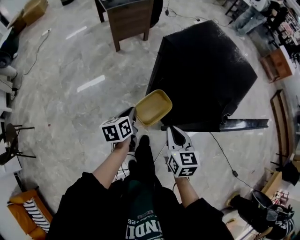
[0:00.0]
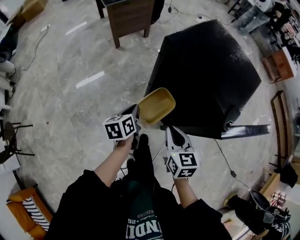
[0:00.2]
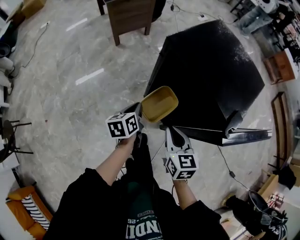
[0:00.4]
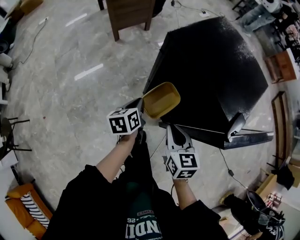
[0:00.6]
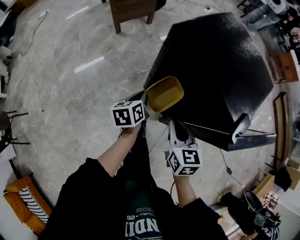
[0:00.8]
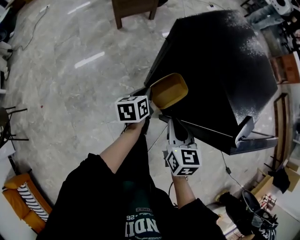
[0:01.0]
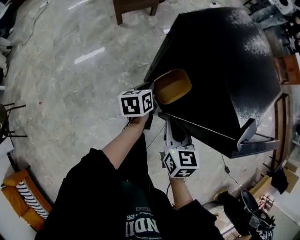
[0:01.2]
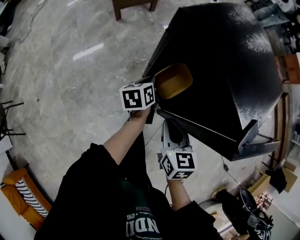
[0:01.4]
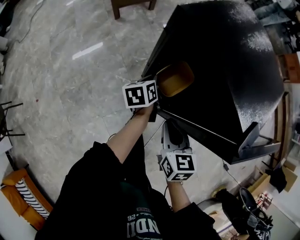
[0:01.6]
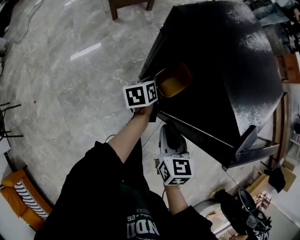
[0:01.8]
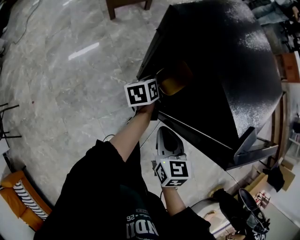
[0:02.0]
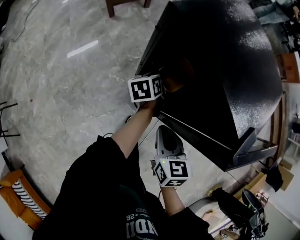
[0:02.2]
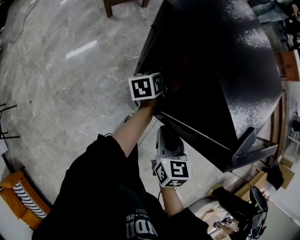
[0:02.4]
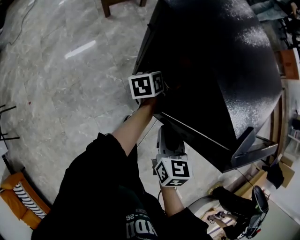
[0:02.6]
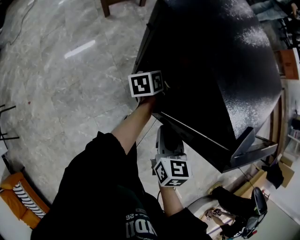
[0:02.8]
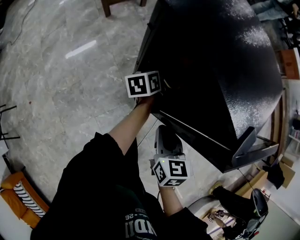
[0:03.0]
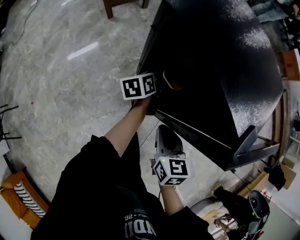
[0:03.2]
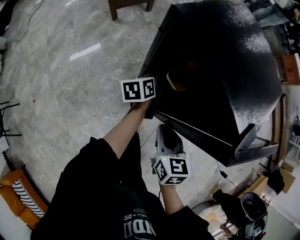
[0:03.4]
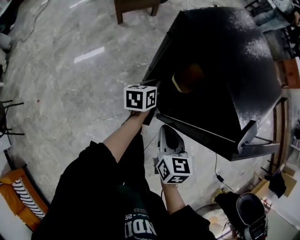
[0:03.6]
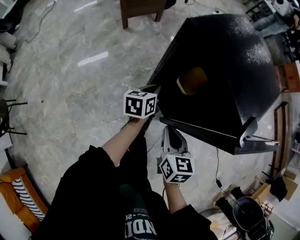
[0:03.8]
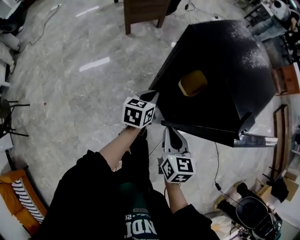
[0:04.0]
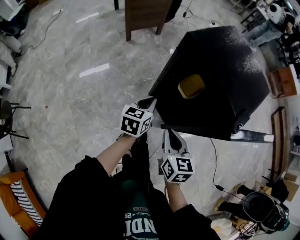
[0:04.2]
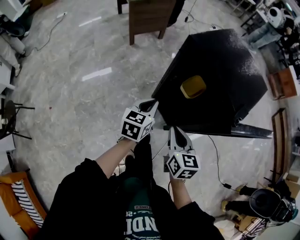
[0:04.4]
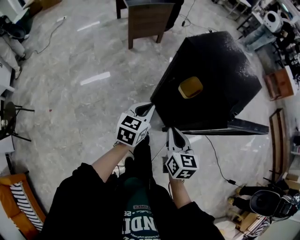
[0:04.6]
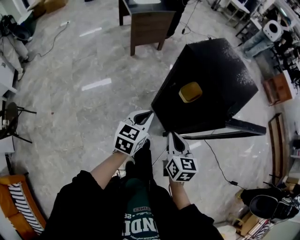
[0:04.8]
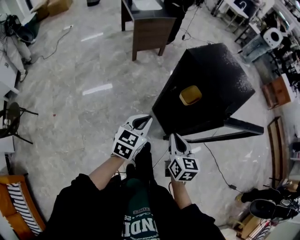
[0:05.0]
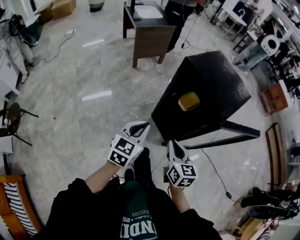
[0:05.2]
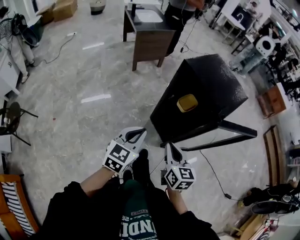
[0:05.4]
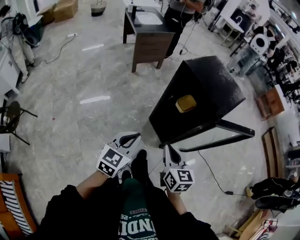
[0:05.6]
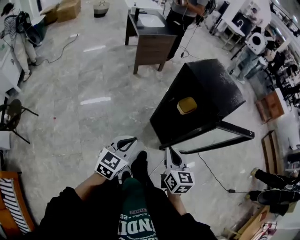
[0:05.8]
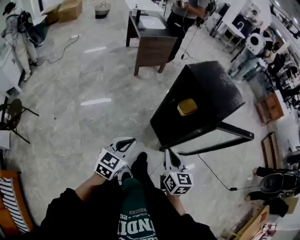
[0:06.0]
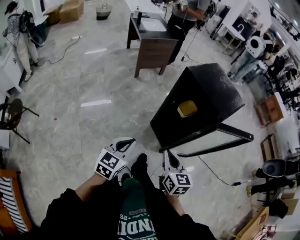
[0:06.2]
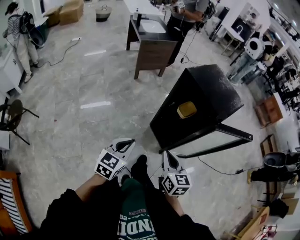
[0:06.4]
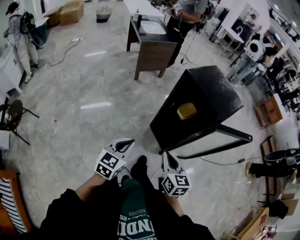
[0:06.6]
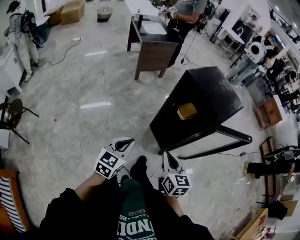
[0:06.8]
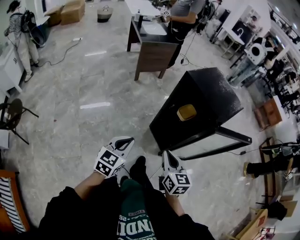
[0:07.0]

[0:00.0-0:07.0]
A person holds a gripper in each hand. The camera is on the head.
0:00.0 to 0:01.4: The left gripper moves forward, downward and to the right, some 20 cm. Meanwhile the right gripper travels downward and forward by roughly 10 cm.
0:01.4 to 0:02.8: The left gripper is displaced to the right and forward by approximately 10 cm.
0:02.8 to 0:04.2: The left gripper travels backward, upward and to the left by about 25 cm, and swivels approximately 30 degrees, while the right gripper is displaced to the left, upward and backward by some 10 cm.
0:04.2 to 0:05.6: The left gripper shifts about 30 cm backward and upward, and rotates roughly 20 degrees; the right gripper is displaced backward and upward by approximately 20 cm.
0:05.6 to 0:07.0: The left gripper moves about 5 cm.

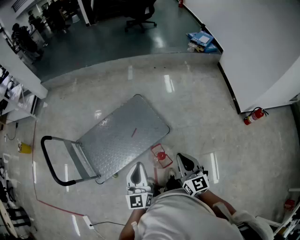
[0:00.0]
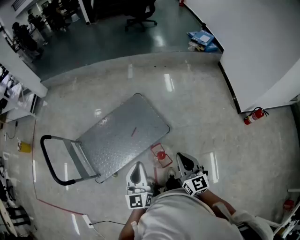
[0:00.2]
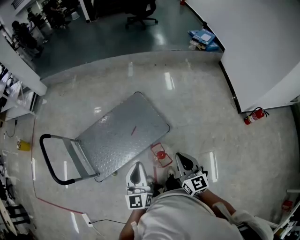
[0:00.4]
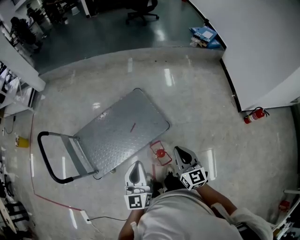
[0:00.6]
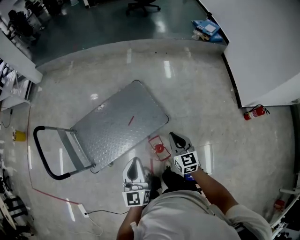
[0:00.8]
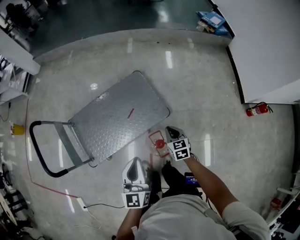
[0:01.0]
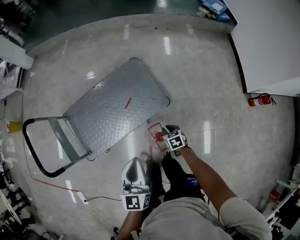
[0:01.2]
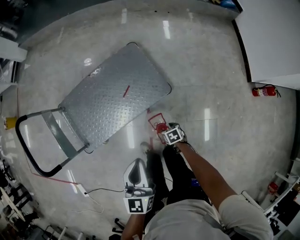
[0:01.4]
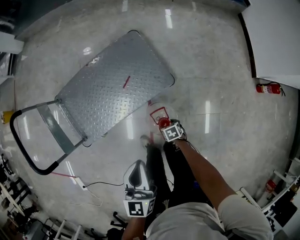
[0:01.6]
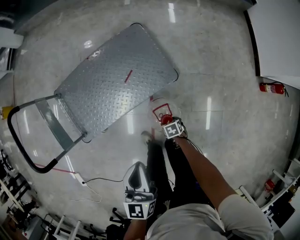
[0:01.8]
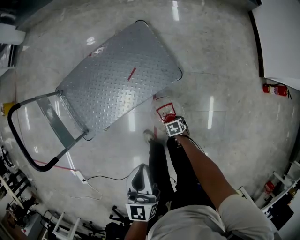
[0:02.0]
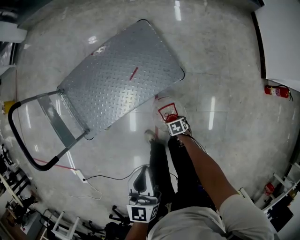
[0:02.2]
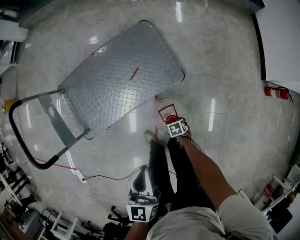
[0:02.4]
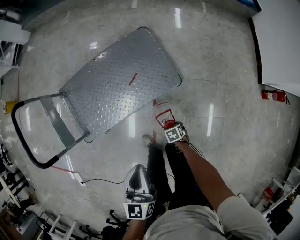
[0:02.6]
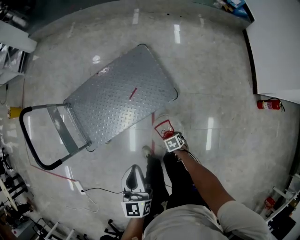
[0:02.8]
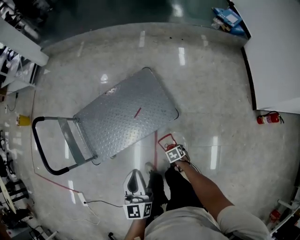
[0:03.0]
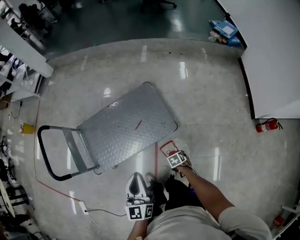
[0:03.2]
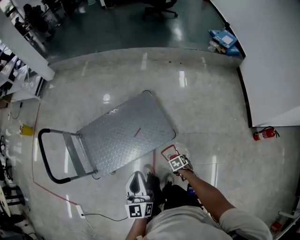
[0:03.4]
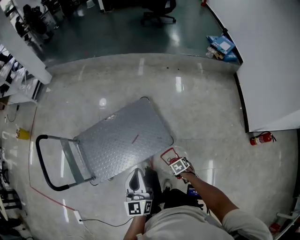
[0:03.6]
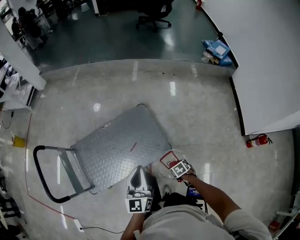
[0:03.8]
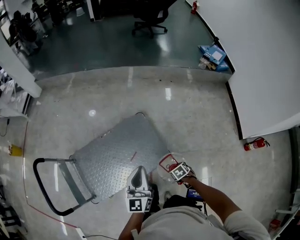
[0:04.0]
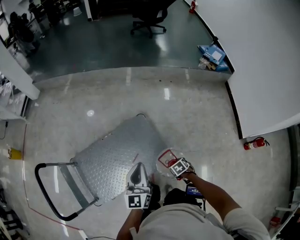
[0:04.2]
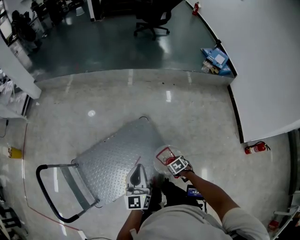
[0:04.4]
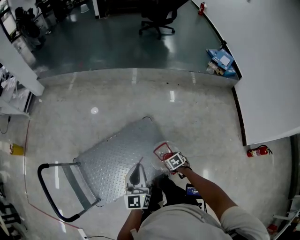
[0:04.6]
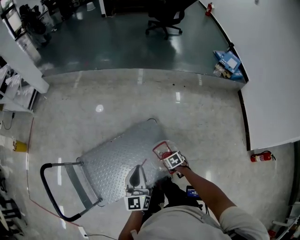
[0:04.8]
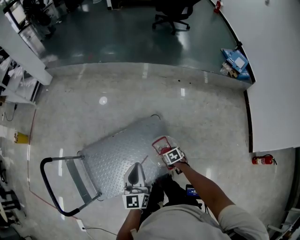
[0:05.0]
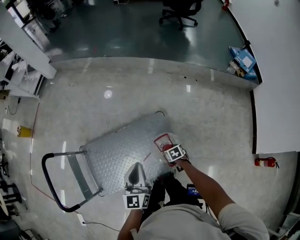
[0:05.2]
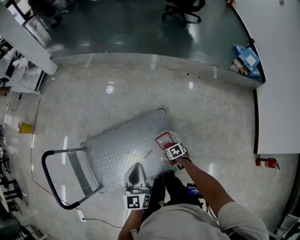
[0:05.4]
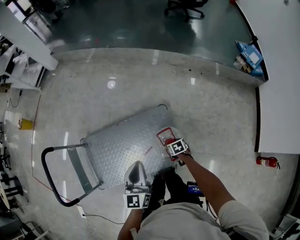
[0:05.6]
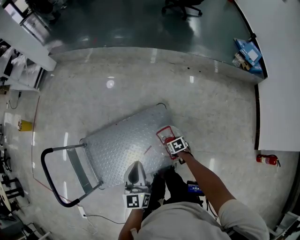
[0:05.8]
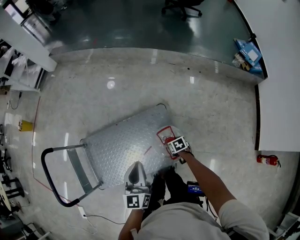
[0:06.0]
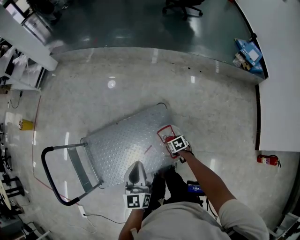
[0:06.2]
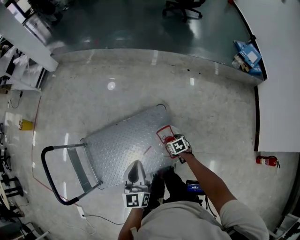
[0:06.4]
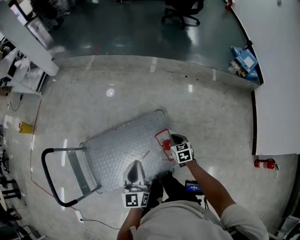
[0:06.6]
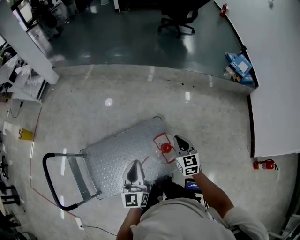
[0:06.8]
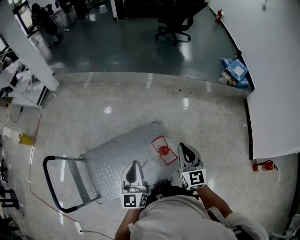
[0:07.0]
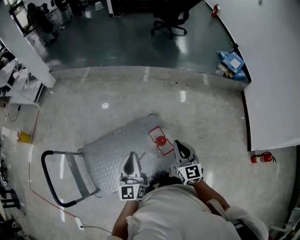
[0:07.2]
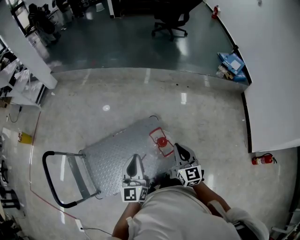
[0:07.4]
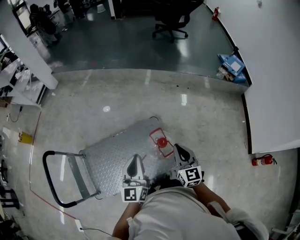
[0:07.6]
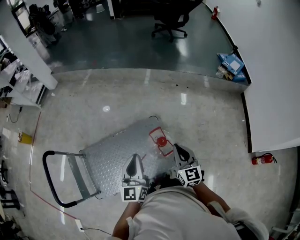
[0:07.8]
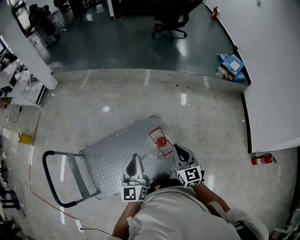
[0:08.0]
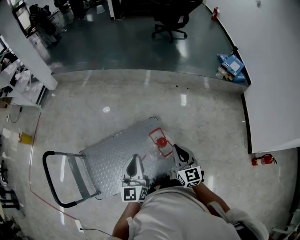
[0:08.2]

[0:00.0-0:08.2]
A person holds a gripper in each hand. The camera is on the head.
0:00.0 to 0:01.6: The right gripper moves downward, approximately 50 cm, angles its fingers downward, by some 70 degrees, and opens up. Meanwhile the left gripper goes some 15 cm downward.
0:01.6 to 0:03.2: Both grippers travel together upward, about 10 cm.
0:03.2 to 0:05.0: The right gripper shifts by some 40 cm; the left gripper ends up roughly 40 cm from where it was.
0:05.0 to 0:06.6: The right gripper is displaced upward and forward by about 10 cm, turns by about 30 degrees, and closes its fingers.
0:06.6 to 0:08.2: The left gripper moves upward and backward, roughly 10 cm. The right gripper heads upward and backward, covering approximately 25 cm, and tips its fingers upward by roughly 40 degrees.

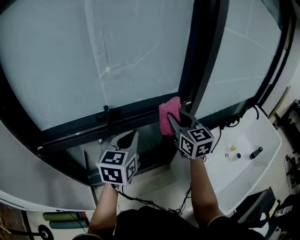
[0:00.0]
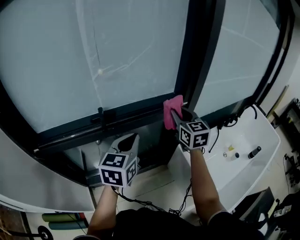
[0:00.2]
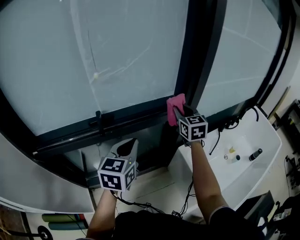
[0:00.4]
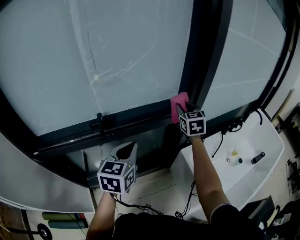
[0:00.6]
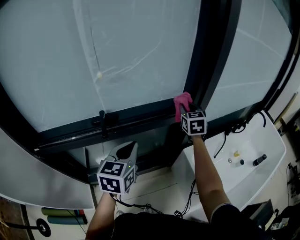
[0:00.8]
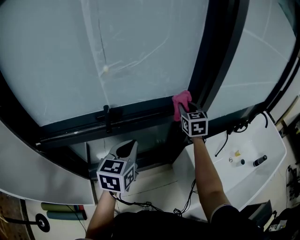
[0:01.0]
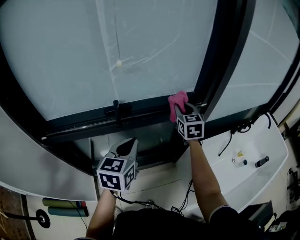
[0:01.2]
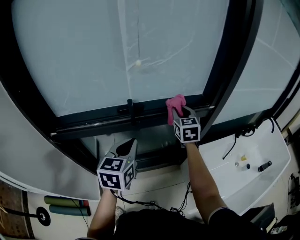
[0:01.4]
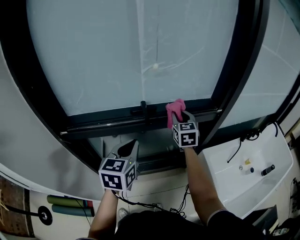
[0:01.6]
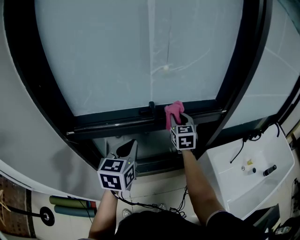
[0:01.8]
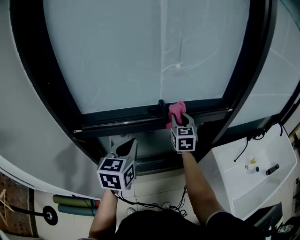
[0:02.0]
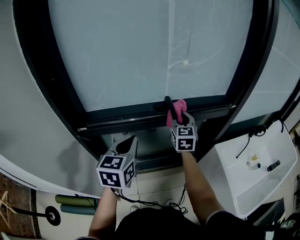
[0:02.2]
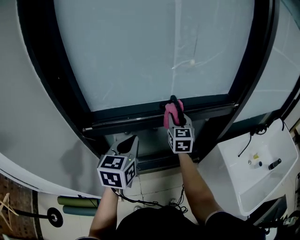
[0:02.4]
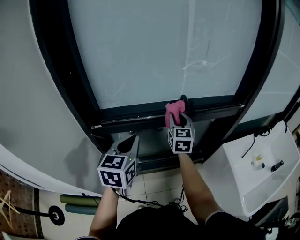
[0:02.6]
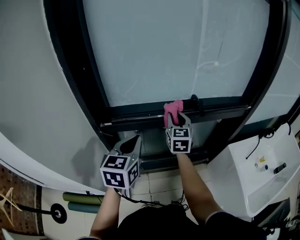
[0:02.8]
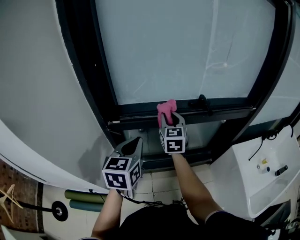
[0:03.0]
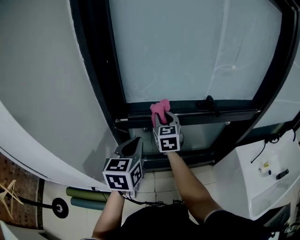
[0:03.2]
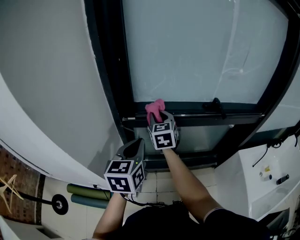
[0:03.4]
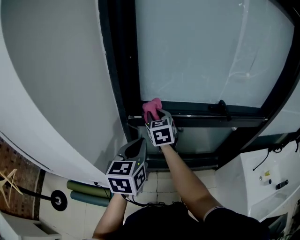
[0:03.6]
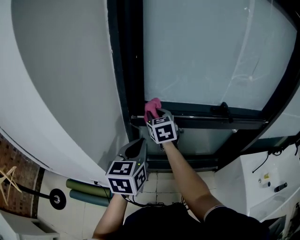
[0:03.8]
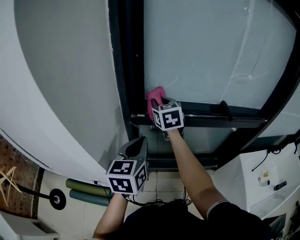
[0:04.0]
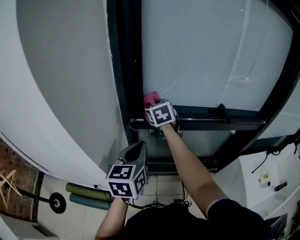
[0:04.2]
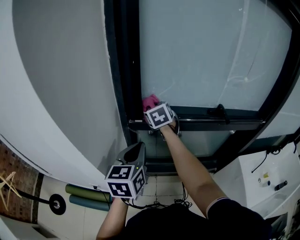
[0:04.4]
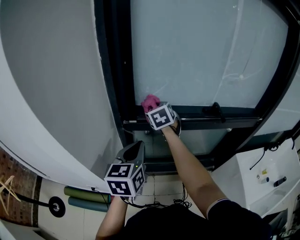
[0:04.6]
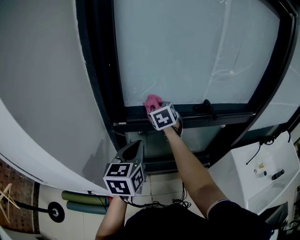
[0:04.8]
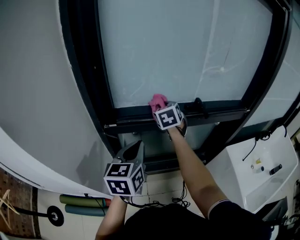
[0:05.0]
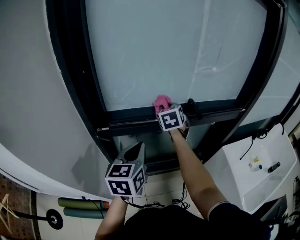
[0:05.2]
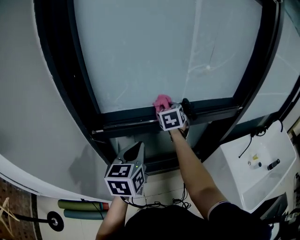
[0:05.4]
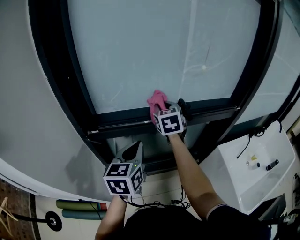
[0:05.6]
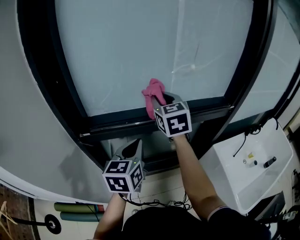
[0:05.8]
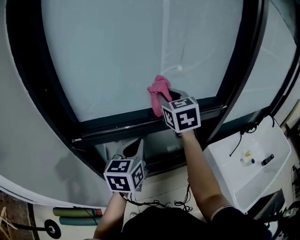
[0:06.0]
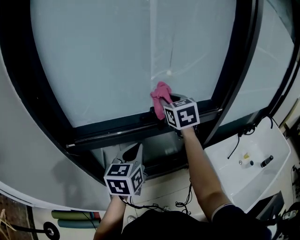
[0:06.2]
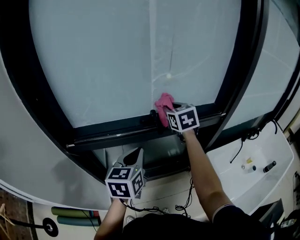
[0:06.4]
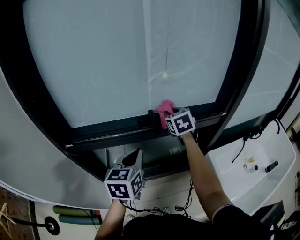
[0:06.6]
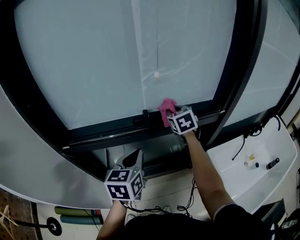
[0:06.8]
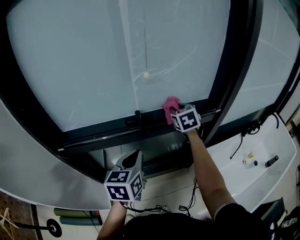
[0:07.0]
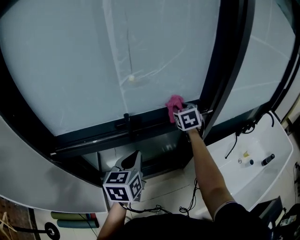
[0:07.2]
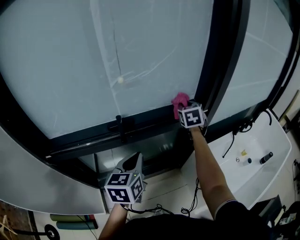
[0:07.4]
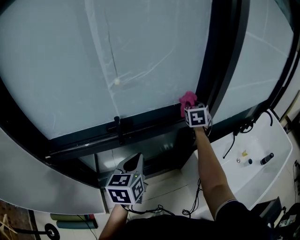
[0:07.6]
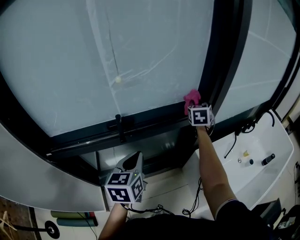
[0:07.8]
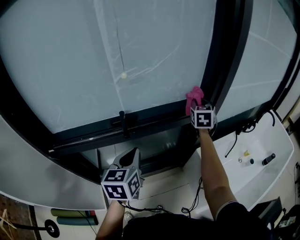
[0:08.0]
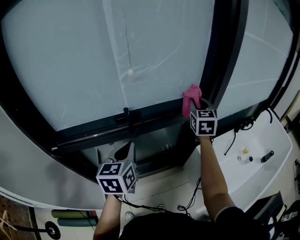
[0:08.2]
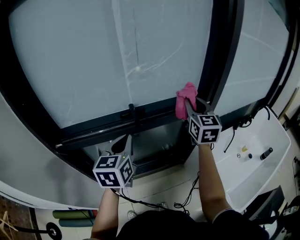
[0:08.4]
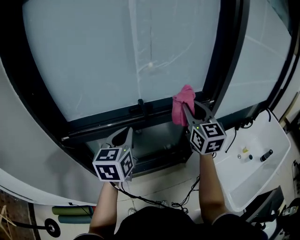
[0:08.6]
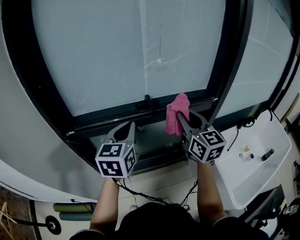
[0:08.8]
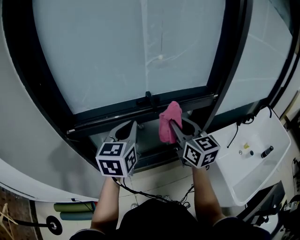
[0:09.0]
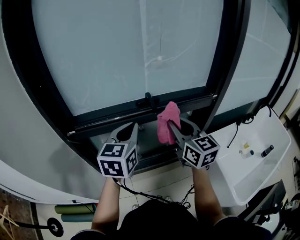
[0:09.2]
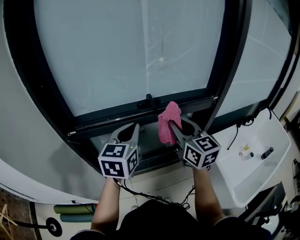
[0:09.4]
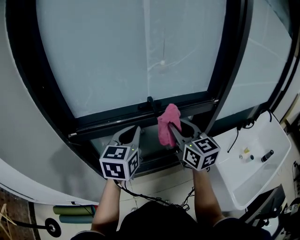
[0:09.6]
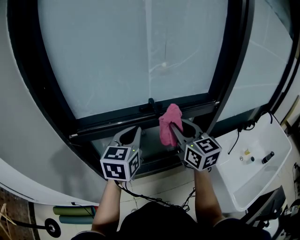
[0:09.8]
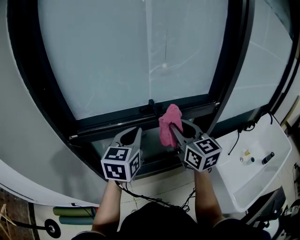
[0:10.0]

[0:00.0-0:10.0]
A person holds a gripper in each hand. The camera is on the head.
0:00.0 to 0:01.4: The right gripper is displaced forward, downward and to the left by some 15 cm, while the left gripper travels to the left by roughly 10 cm.
0:01.4 to 0:02.8: The grippers both shift to the left by some 25 cm.
0:02.8 to 0:04.2: The left gripper heads to the left, covering about 10 cm. The right gripper shifts about 25 cm to the left, and swivels roughly 30 degrees.
0:04.2 to 0:05.8: The right gripper heads to the right, covering roughly 25 cm, and changes its angle by some 20 degrees, while the left gripper travels to the right and forward by roughly 20 cm.
0:05.8 to 0:07.2: The right gripper goes about 35 cm to the right and forward, and swivels roughly 20 degrees. Meanwhile the left gripper heads to the right, covering approximately 15 cm.
0:07.2 to 0:08.6: The left gripper travels to the left and upward by approximately 10 cm; the right gripper moves backward and upward, roughly 25 cm, and tilts its fingers roughly 30 degrees upward.
0:08.6 to 0:10.0: The right gripper is displaced to the left and backward by some 10 cm.
